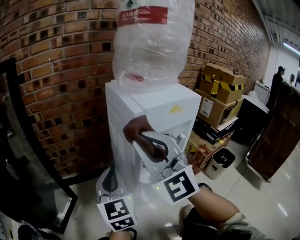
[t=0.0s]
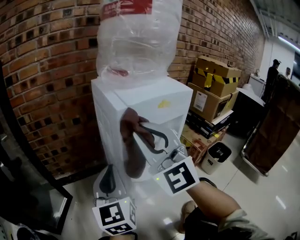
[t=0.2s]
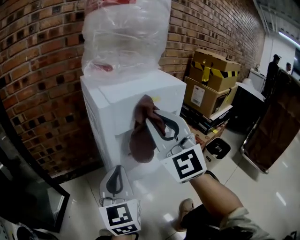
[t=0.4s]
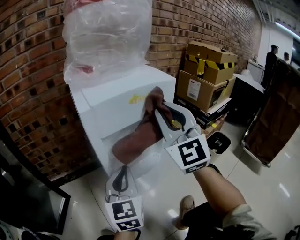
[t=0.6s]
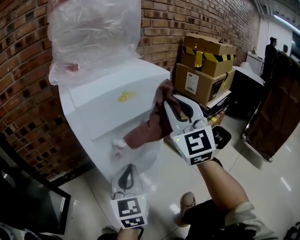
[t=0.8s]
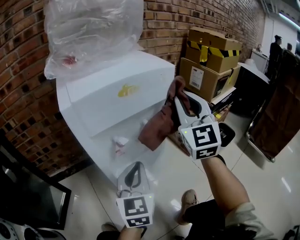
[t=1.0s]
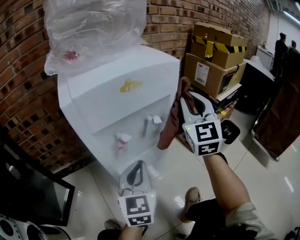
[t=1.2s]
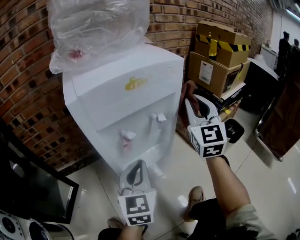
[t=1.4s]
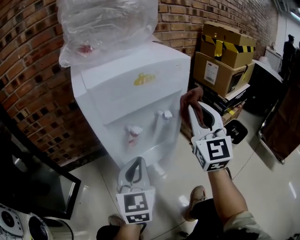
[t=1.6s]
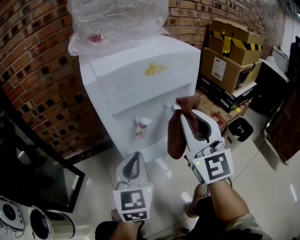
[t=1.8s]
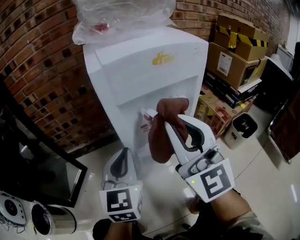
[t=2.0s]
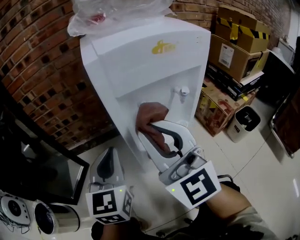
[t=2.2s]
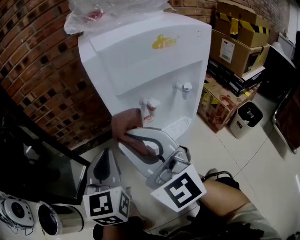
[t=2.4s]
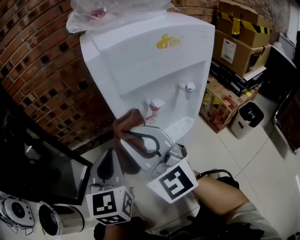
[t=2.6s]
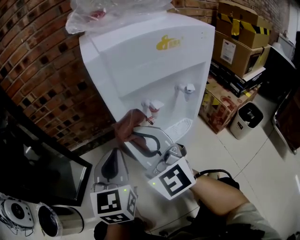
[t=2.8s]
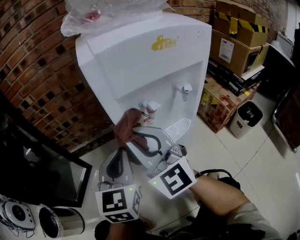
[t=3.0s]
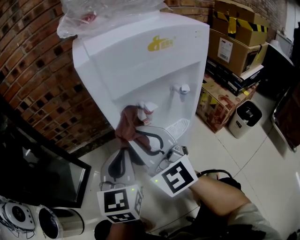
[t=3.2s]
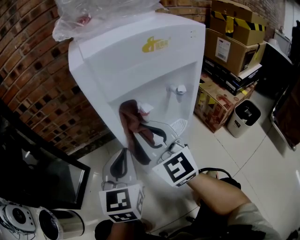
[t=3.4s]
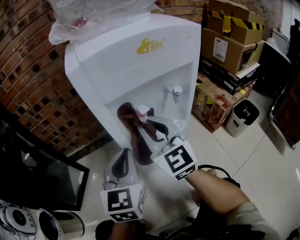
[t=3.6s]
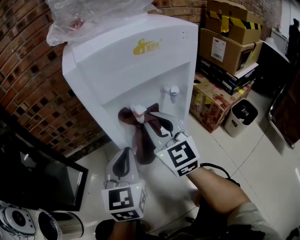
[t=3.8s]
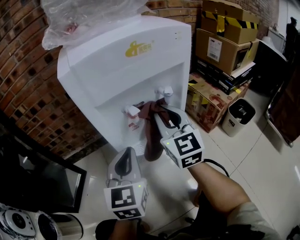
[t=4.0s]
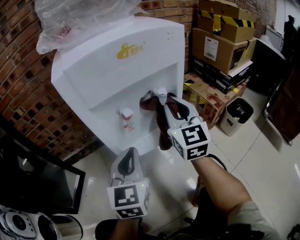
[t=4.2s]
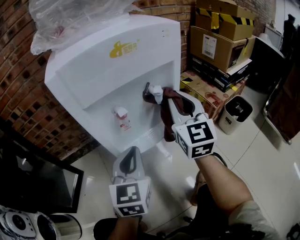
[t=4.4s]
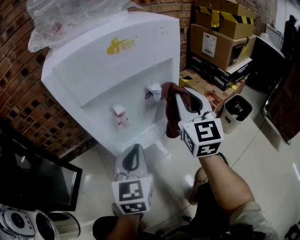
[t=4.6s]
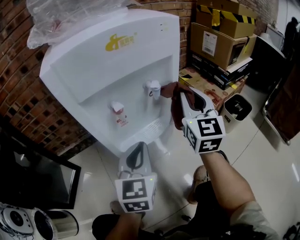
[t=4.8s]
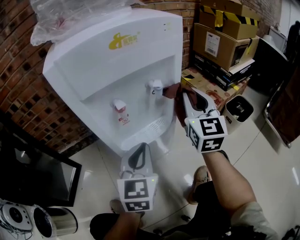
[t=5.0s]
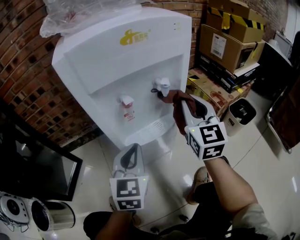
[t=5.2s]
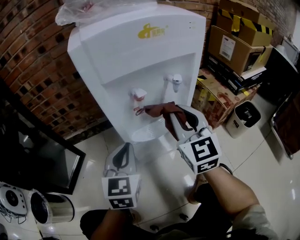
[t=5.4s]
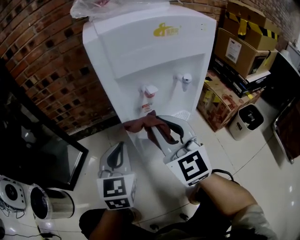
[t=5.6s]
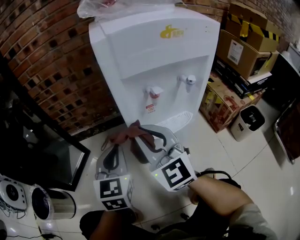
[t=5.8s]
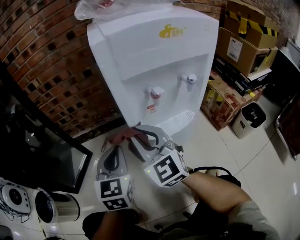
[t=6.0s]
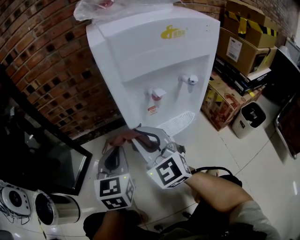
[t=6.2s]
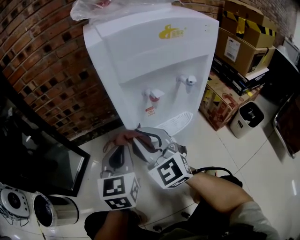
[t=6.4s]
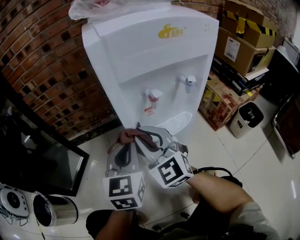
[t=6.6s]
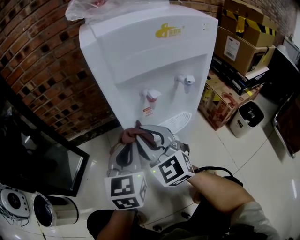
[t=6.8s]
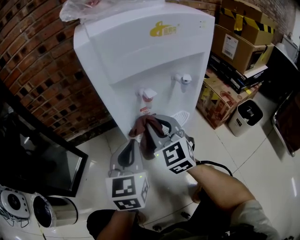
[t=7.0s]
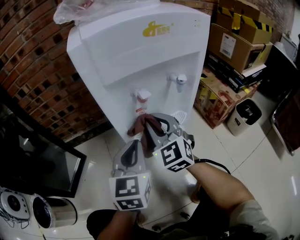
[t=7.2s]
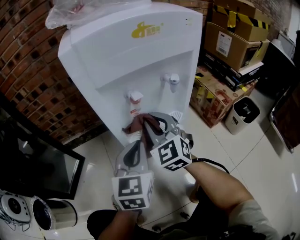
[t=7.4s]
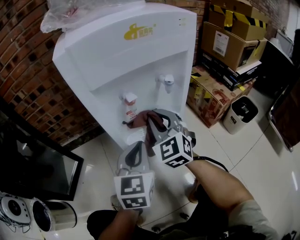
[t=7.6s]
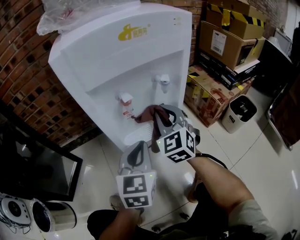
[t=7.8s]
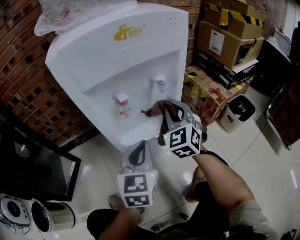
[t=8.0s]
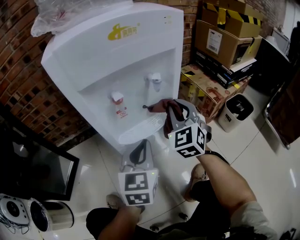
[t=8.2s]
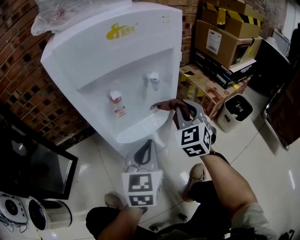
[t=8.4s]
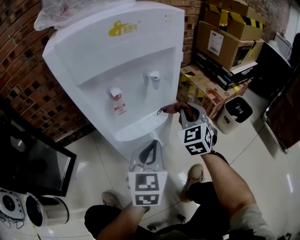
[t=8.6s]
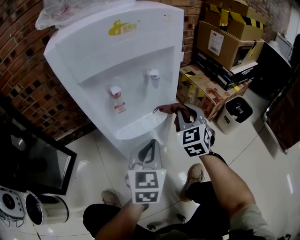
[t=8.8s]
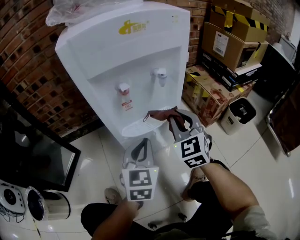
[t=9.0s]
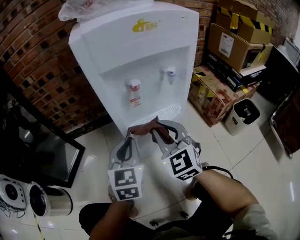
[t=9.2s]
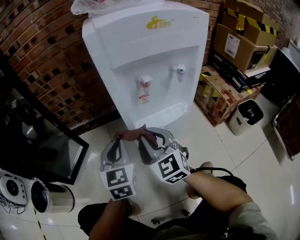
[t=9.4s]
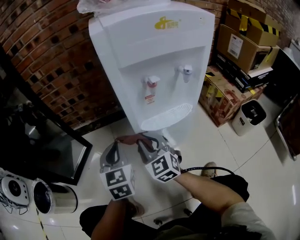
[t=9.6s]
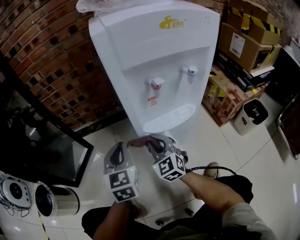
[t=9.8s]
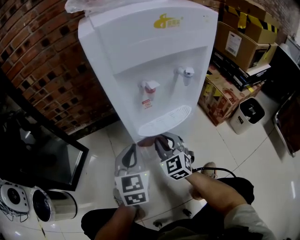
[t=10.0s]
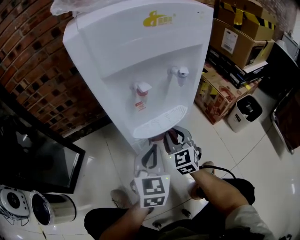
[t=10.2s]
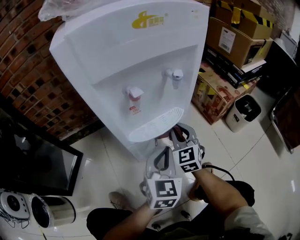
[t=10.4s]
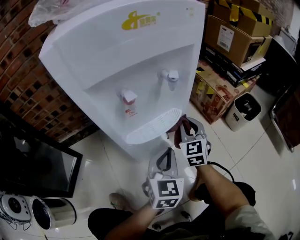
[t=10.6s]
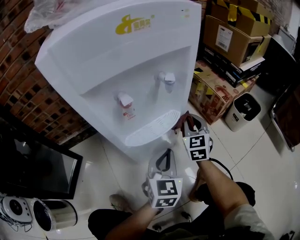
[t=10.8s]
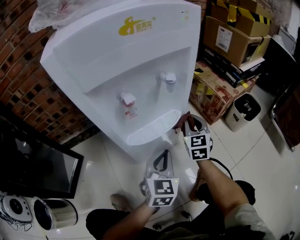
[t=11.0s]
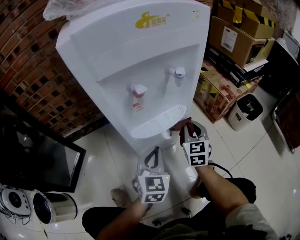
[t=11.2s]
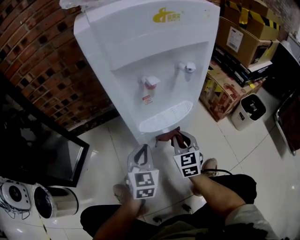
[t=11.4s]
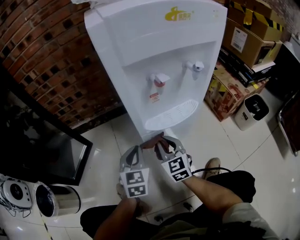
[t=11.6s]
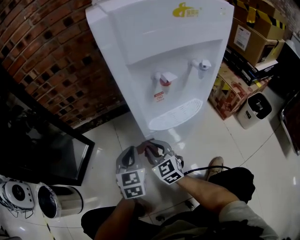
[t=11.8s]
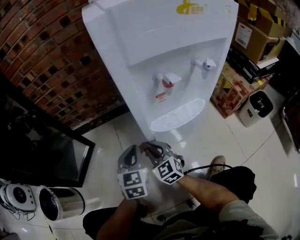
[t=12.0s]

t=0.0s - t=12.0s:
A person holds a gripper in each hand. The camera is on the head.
t=0.0s - t=1.6s: The left gripper changes place by some 20 cm. Meanwhile the right gripper changes place by about 30 cm, and turns by roughly 30 degrees.
t=1.6s - t=3.0s: The left gripper ends up about 10 cm from where it was. Meanwhile the right gripper shifts by approximately 30 cm, and rotates approximately 40 degrees.
t=3.0s - t=4.4s: The right gripper shifts about 25 cm to the right, and changes its angle by roughly 40 degrees. Meanwhile the left gripper moves to the right, roughly 10 cm.
t=4.4s - t=6.0s: The right gripper moves approximately 25 cm, and turns by approximately 40 degrees. Meanwhile the left gripper ends up about 15 cm from where it was.
t=6.0s - t=7.6s: The left gripper shifts roughly 15 cm to the right; the right gripper heads to the right and forward, covering roughly 15 cm, and rotates some 20 degrees.
t=7.6s - t=9.0s: The right gripper travels to the right by some 10 cm.
t=9.0s - t=10.4s: The right gripper heads downward, covering roughly 10 cm.
t=10.4s - t=12.0s: The left gripper shifts by about 20 cm, and rotates approximately 20 degrees. Meanwhile the right gripper moves approximately 25 cm, and changes its angle by about 30 degrees.

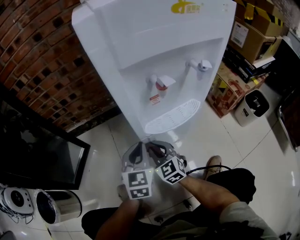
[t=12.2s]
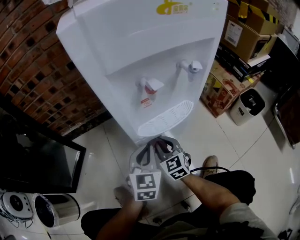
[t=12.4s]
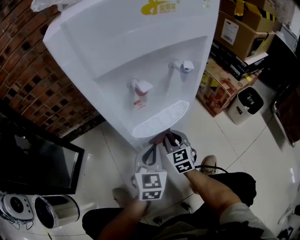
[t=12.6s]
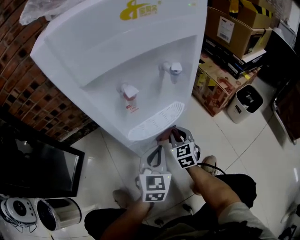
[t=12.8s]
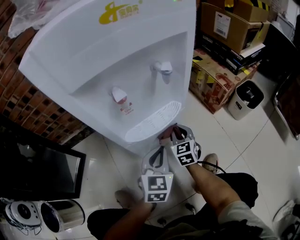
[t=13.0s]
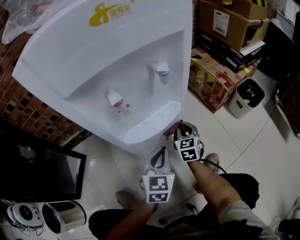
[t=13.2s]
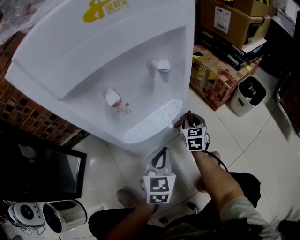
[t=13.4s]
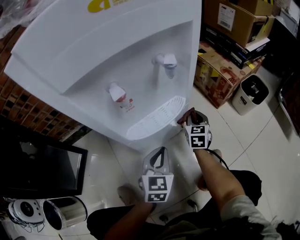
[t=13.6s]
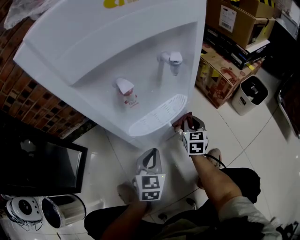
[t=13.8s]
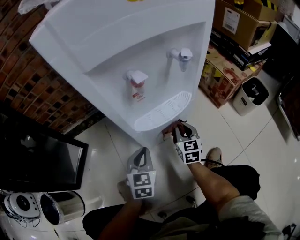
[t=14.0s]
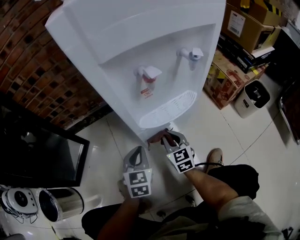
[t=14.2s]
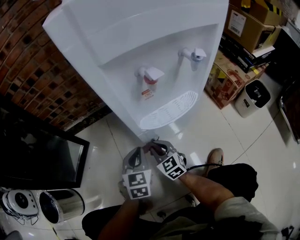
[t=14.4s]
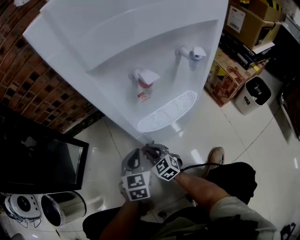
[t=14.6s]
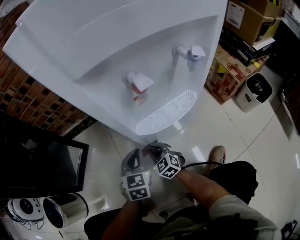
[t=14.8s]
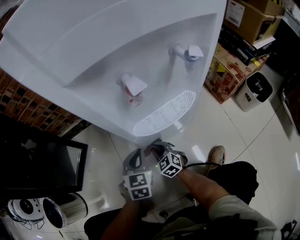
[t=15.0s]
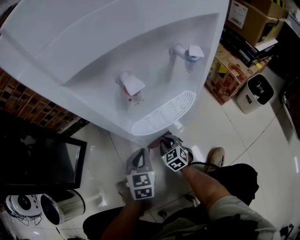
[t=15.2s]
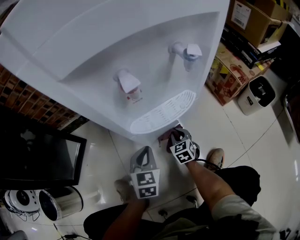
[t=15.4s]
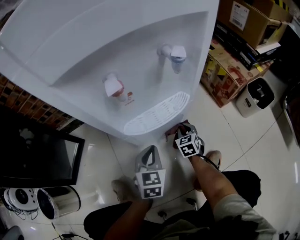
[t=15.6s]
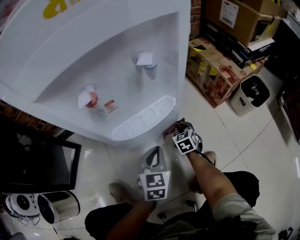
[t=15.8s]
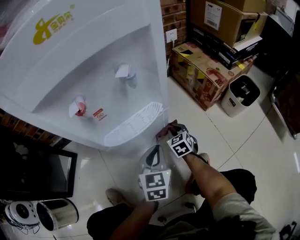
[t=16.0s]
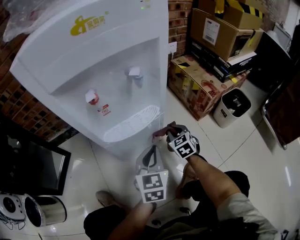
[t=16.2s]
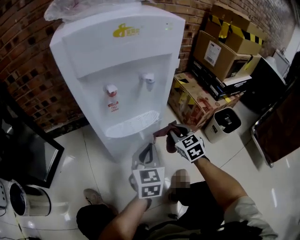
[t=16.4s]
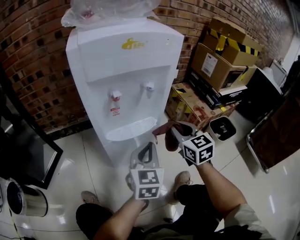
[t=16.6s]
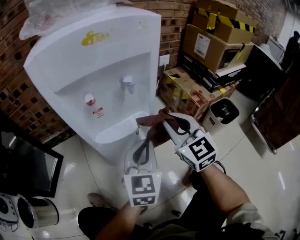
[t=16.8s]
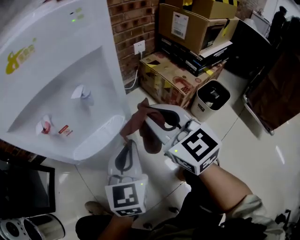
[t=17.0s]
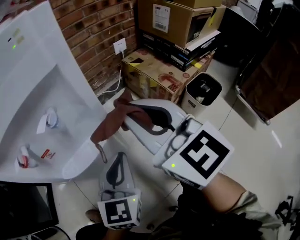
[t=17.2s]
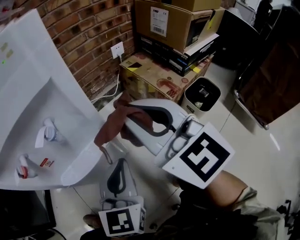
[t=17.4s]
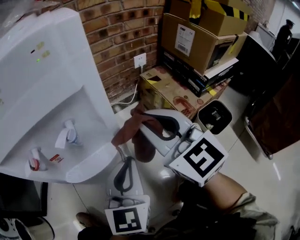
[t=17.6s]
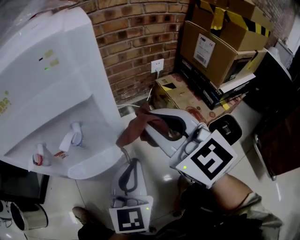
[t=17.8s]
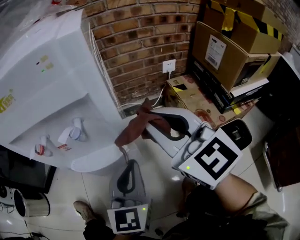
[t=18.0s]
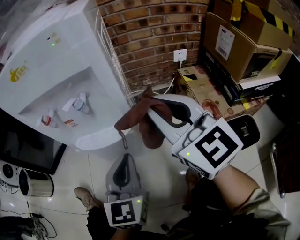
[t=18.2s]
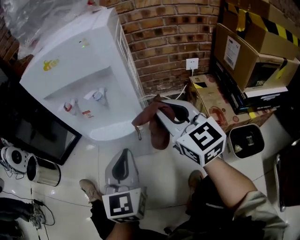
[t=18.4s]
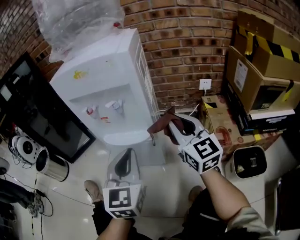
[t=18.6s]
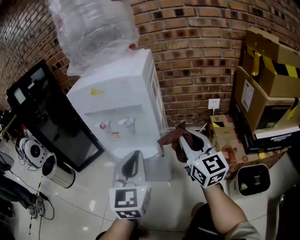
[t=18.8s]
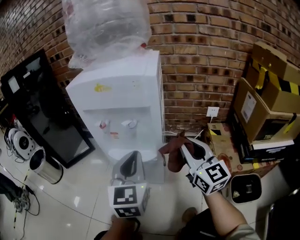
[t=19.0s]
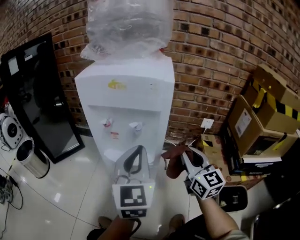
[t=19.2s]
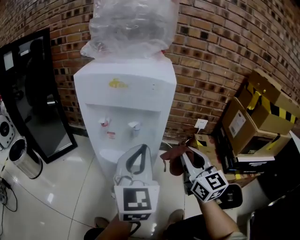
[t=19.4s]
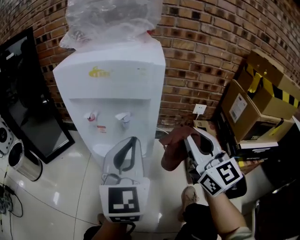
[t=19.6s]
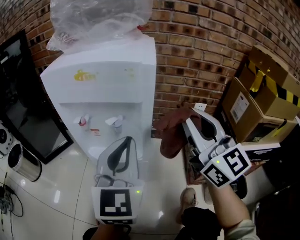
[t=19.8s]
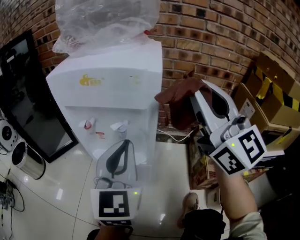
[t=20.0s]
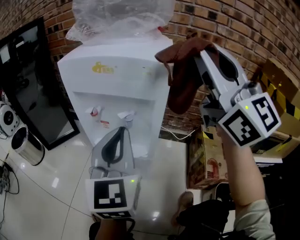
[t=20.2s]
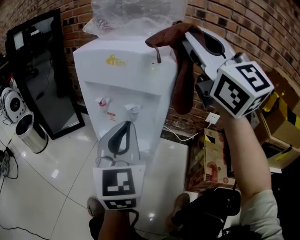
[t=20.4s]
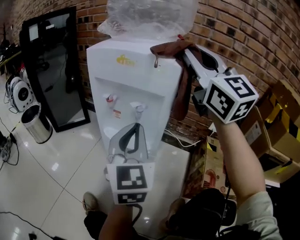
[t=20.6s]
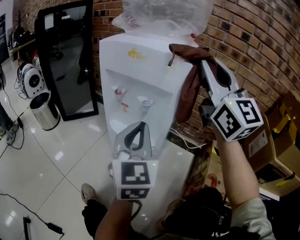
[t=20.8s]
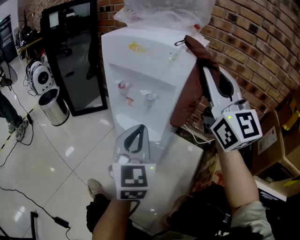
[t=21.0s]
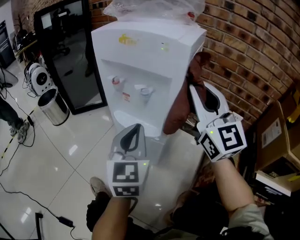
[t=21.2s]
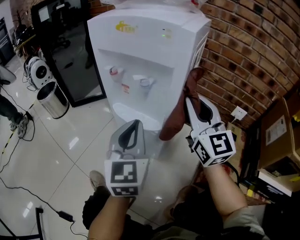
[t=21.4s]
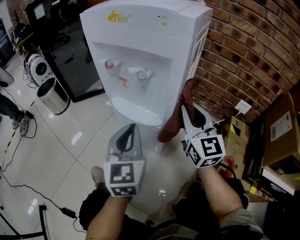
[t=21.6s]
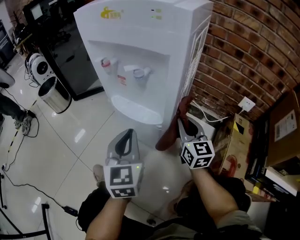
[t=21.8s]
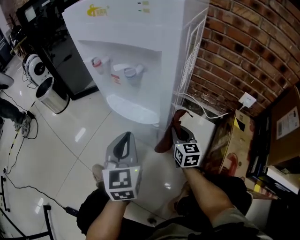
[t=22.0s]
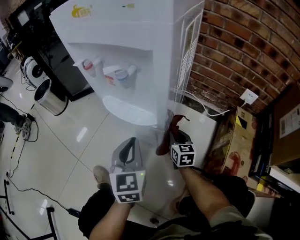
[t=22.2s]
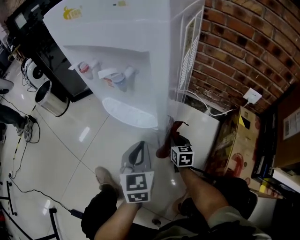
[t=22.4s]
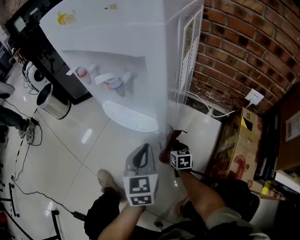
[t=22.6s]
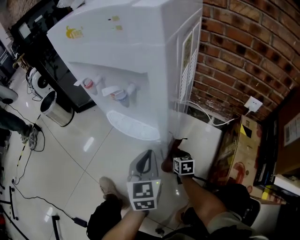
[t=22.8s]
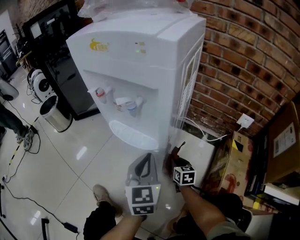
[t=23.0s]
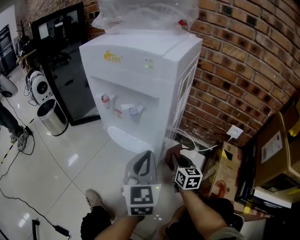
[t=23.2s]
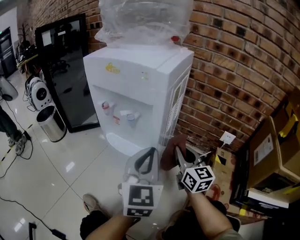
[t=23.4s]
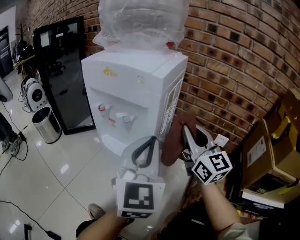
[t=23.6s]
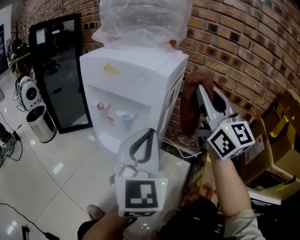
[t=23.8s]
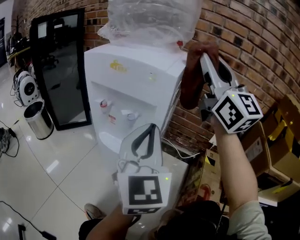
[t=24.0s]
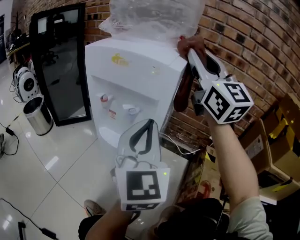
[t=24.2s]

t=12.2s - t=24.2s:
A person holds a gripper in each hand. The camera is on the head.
t=12.2s - t=13.8s: The left gripper ends up about 10 cm from where it was; the right gripper shifts by approximately 25 cm, and rotates roughly 40 degrees.
t=13.8s - t=15.2s: The right gripper shifts by roughly 20 cm, and turns by some 40 degrees, while the left gripper ends up about 10 cm from where it was.
t=15.2s - t=16.6s: The left gripper travels upward and to the right by approximately 25 cm, and changes its angle by about 20 degrees. The right gripper heads upward and to the right, covering some 40 cm, and swivels roughly 20 degrees.
t=16.6s - t=18.2s: The left gripper changes its angle by roughly 20 degrees. Meanwhile the right gripper heads upward, covering approximately 10 cm, and turns by about 30 degrees.
t=18.2s - t=19.8s: The right gripper heads upward, covering roughly 10 cm, while the left gripper travels upward by about 15 cm.
t=19.8s - t=21.2s: The right gripper shifts some 5 cm forward, and goes upward and returns, about 20 cm each way; the left gripper is displaced downward by about 10 cm, and changes its angle by approximately 30 degrees.
t=21.2s - t=22.6s: The right gripper moves downward, about 60 cm, and tilts its fingers approximately 60 degrees downward. The left gripper heads downward, covering about 20 cm.
t=22.6s - t=24.2s: The right gripper heads upward, covering about 70 cm, and angles its fingers upward, by roughly 60 degrees; the left gripper heads upward, covering roughly 30 cm, and tips its fingers upward by approximately 30 degrees.
